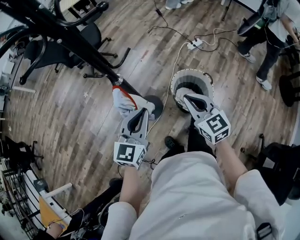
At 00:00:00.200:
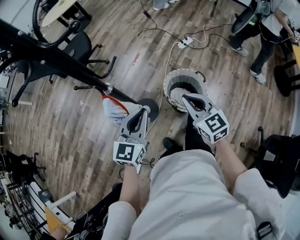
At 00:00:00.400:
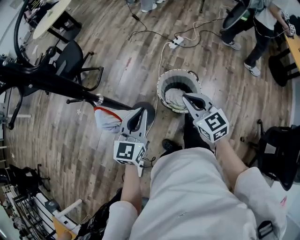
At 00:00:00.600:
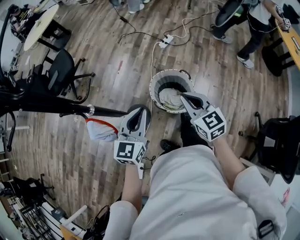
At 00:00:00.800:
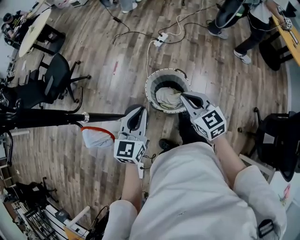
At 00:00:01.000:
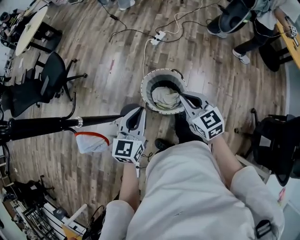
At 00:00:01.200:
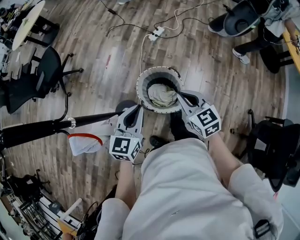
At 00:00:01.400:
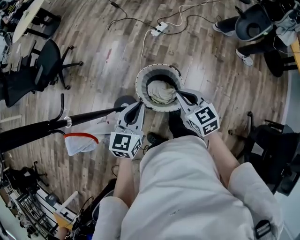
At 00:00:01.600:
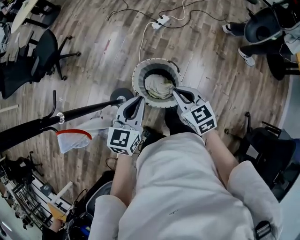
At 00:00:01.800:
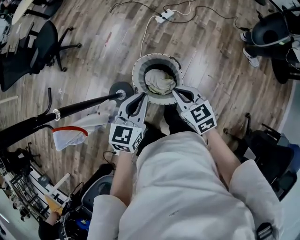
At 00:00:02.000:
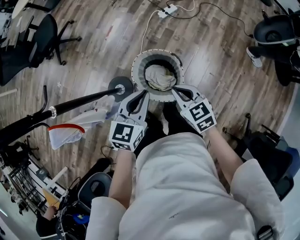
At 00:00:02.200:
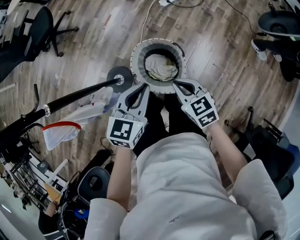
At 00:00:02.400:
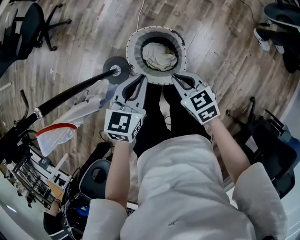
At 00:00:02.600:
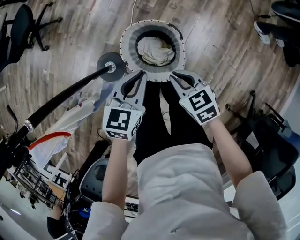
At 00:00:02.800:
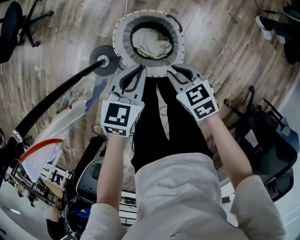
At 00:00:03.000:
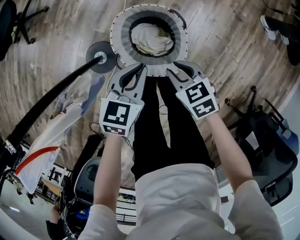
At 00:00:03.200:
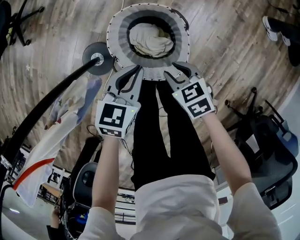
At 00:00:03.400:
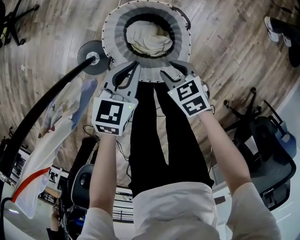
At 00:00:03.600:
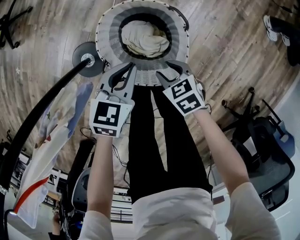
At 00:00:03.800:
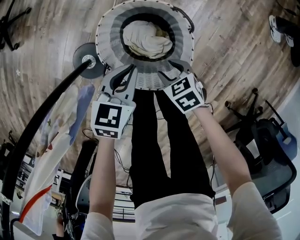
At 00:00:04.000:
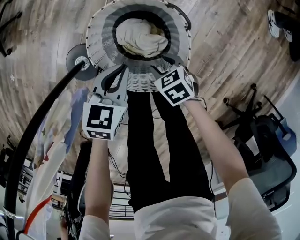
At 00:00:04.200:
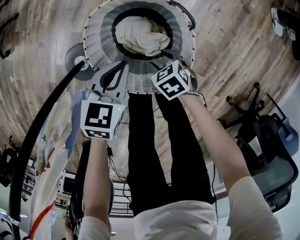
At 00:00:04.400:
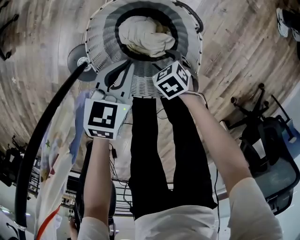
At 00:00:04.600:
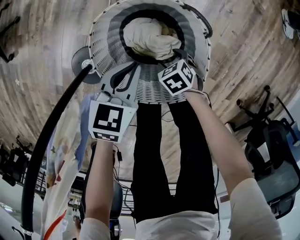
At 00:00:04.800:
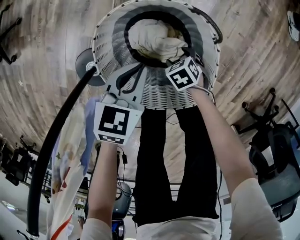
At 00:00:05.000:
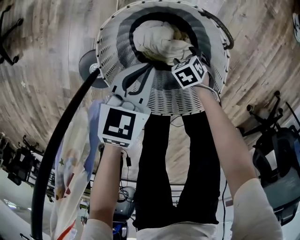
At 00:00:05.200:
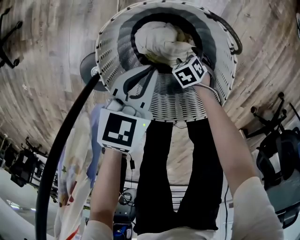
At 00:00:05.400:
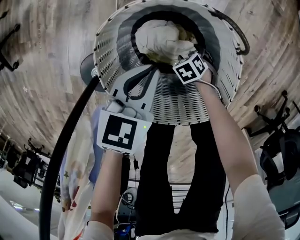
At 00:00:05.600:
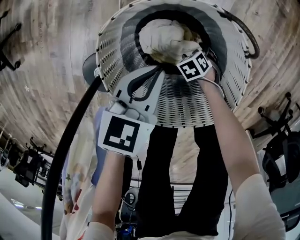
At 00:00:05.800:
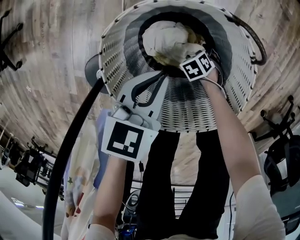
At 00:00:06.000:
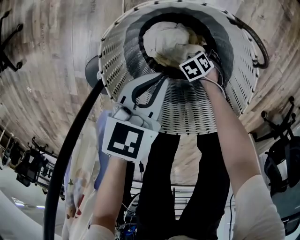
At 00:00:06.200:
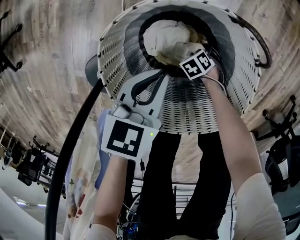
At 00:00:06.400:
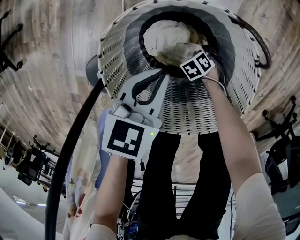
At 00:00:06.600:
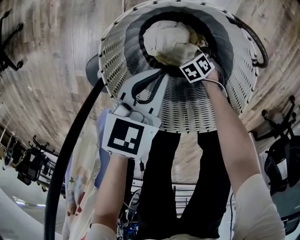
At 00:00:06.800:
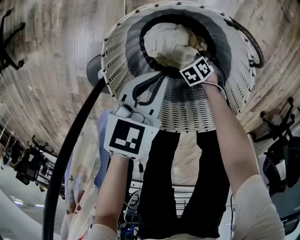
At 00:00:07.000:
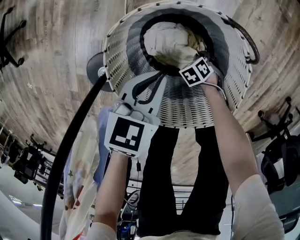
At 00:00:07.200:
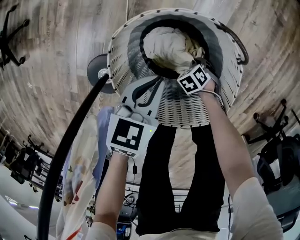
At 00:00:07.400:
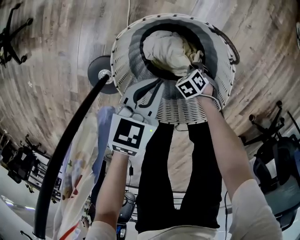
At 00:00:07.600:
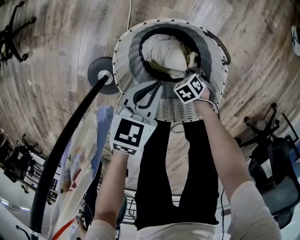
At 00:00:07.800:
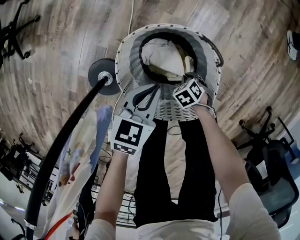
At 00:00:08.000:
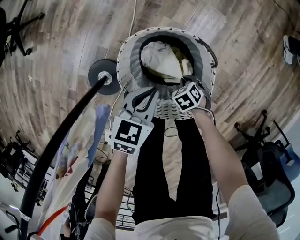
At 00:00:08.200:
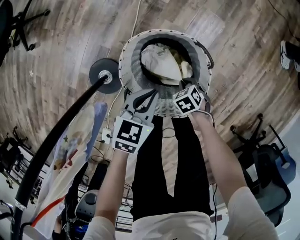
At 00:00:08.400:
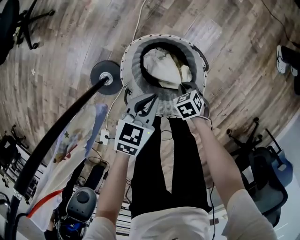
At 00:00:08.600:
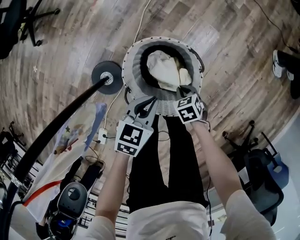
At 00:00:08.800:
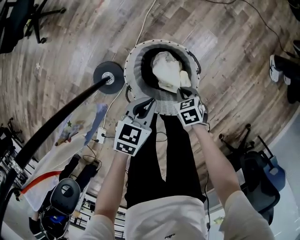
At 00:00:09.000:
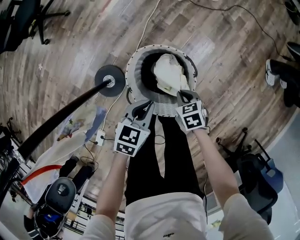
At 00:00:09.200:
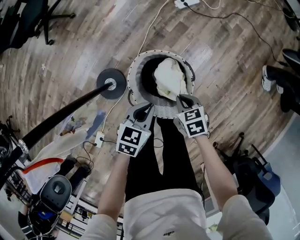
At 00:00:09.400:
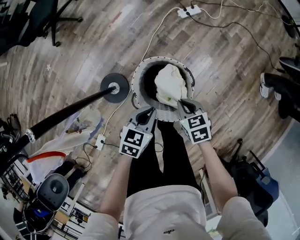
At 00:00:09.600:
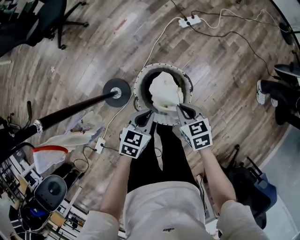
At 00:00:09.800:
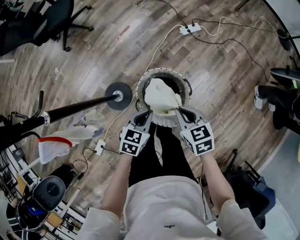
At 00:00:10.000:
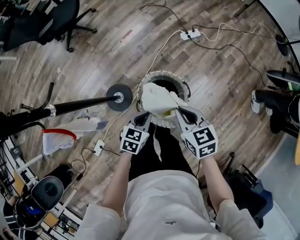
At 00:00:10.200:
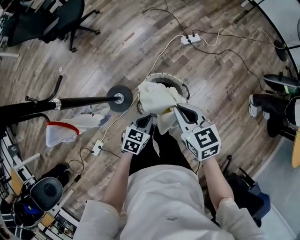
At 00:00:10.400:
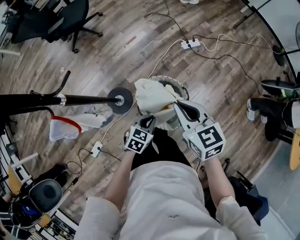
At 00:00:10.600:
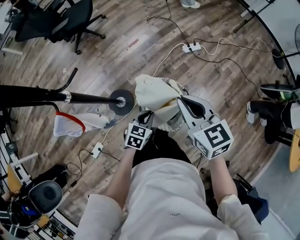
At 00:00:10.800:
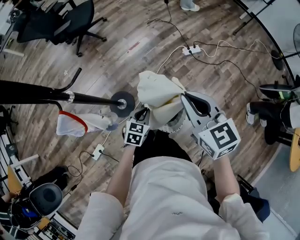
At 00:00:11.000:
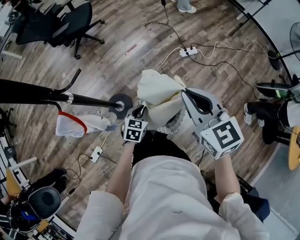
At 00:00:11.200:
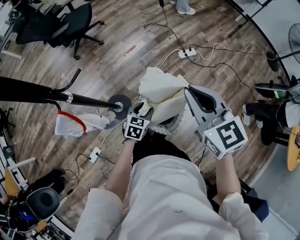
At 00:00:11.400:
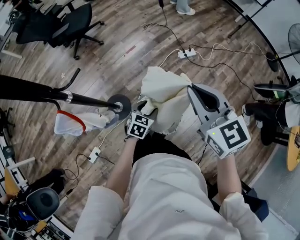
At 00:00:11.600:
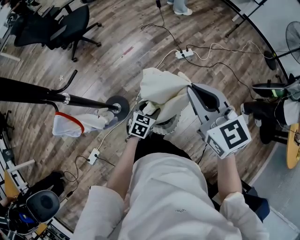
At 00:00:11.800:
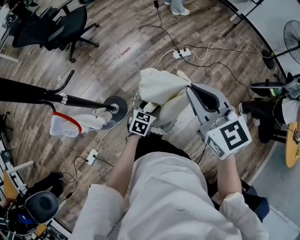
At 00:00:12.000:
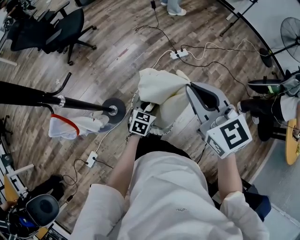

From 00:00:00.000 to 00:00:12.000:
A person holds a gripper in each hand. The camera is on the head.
From 00:00:00.000 to 00:00:01.600: The left gripper is displaced to the right and forward by about 30 cm. Meanwhile the right gripper shifts about 25 cm to the right, downward and forward.
From 00:00:01.600 to 00:00:03.000: Both grippers travel together downward, about 25 cm. The right gripper turns by about 30 degrees, and opens its fingers.
From 00:00:03.000 to 00:00:04.400: The grippers both shift downward by approximately 25 cm. The right gripper changes its angle by roughly 20 degrees, and opens its fingers.
From 00:00:04.400 to 00:00:06.000: The left gripper is displaced downward by some 10 cm; the right gripper moves downward, approximately 25 cm, and turns by roughly 20 degrees.
From 00:00:06.000 to 00:00:07.600: The right gripper heads upward, covering roughly 15 cm, and closes; the left gripper is displaced upward by roughly 5 cm.
From 00:00:07.600 to 00:00:09.000: The left gripper goes some 15 cm upward. The right gripper is displaced upward by about 30 cm, and changes its angle by about 20 degrees.
From 00:00:09.000 to 00:00:10.400: The left gripper goes about 10 cm upward and backward; the right gripper shifts about 40 cm upward, and points its fingers about 40 degrees further upward.
From 00:00:10.400 to 00:00:12.000: The left gripper travels forward by about 10 cm, and opens up; the right gripper is displaced upward by roughly 15 cm.

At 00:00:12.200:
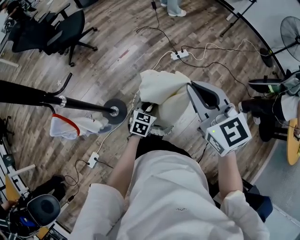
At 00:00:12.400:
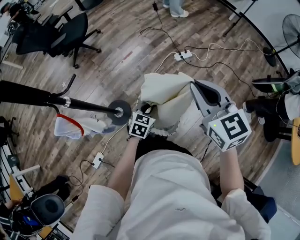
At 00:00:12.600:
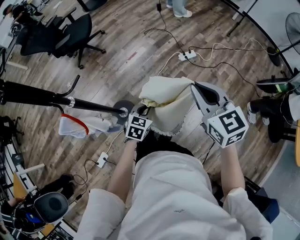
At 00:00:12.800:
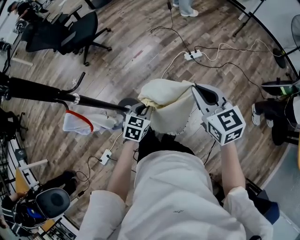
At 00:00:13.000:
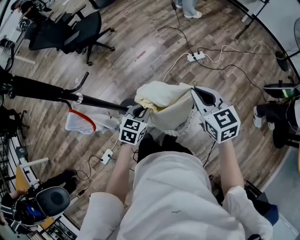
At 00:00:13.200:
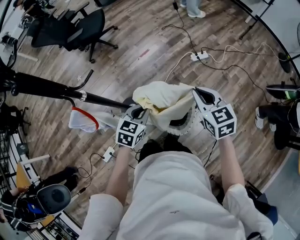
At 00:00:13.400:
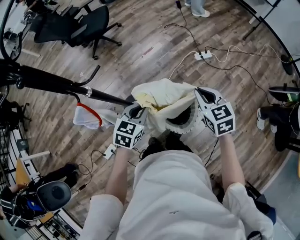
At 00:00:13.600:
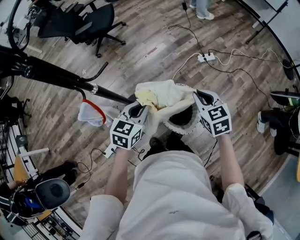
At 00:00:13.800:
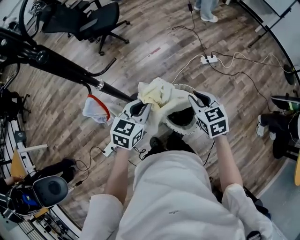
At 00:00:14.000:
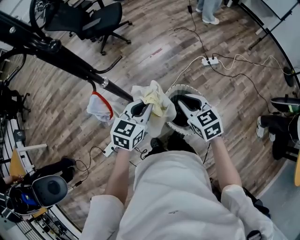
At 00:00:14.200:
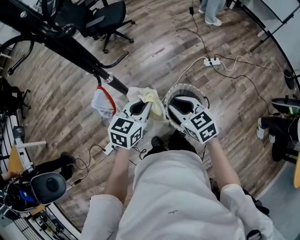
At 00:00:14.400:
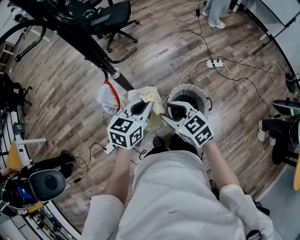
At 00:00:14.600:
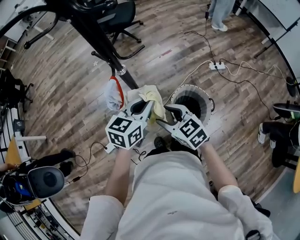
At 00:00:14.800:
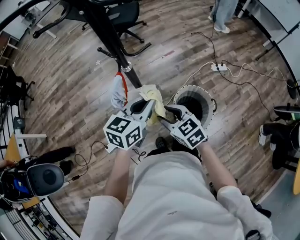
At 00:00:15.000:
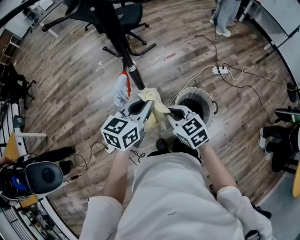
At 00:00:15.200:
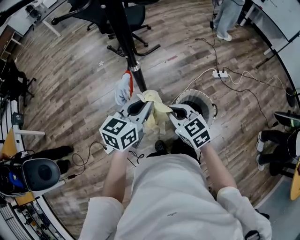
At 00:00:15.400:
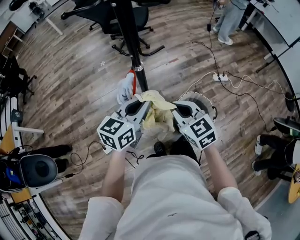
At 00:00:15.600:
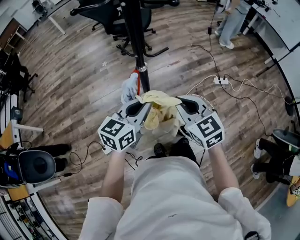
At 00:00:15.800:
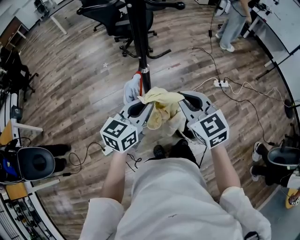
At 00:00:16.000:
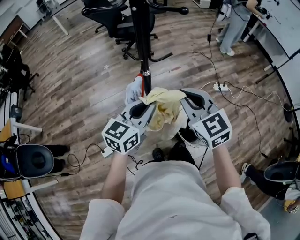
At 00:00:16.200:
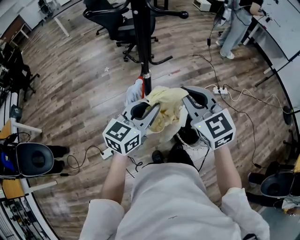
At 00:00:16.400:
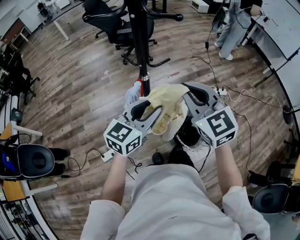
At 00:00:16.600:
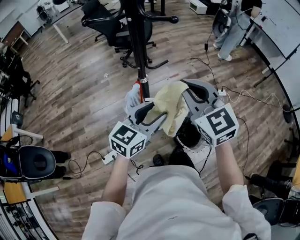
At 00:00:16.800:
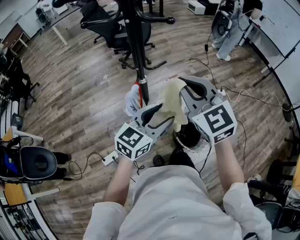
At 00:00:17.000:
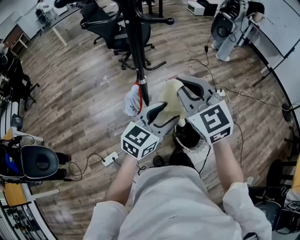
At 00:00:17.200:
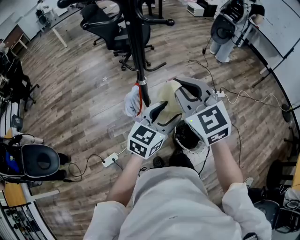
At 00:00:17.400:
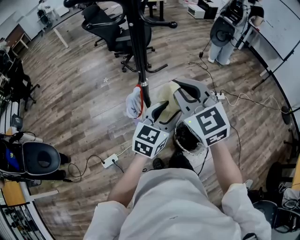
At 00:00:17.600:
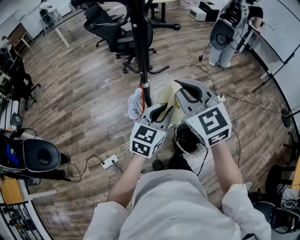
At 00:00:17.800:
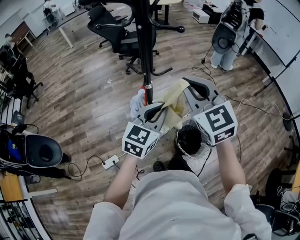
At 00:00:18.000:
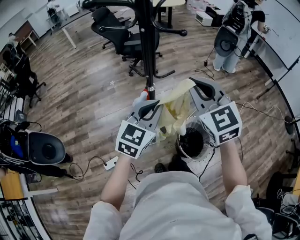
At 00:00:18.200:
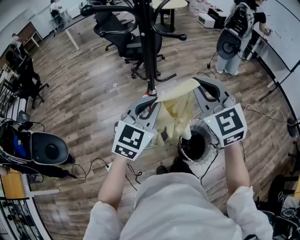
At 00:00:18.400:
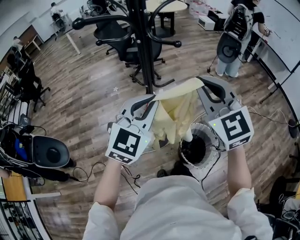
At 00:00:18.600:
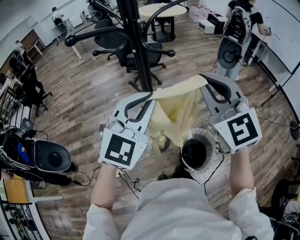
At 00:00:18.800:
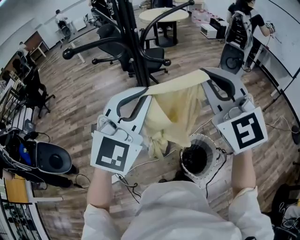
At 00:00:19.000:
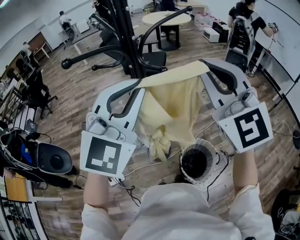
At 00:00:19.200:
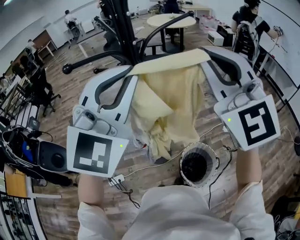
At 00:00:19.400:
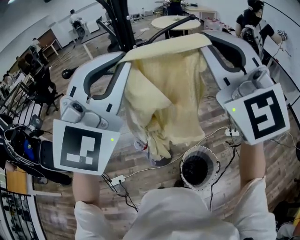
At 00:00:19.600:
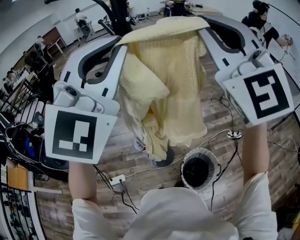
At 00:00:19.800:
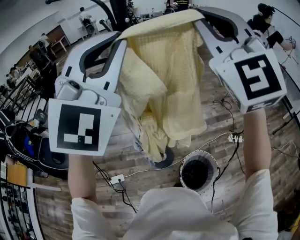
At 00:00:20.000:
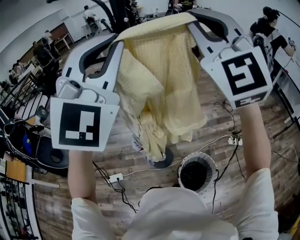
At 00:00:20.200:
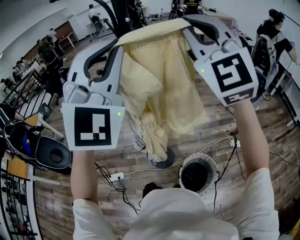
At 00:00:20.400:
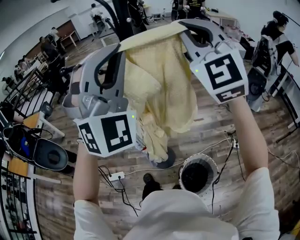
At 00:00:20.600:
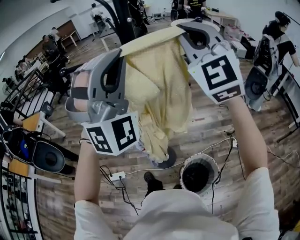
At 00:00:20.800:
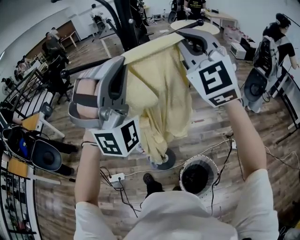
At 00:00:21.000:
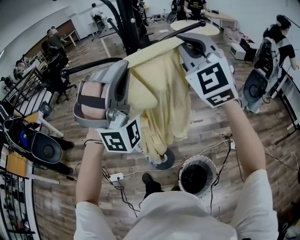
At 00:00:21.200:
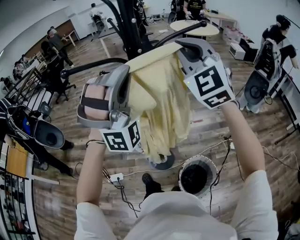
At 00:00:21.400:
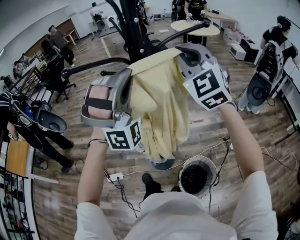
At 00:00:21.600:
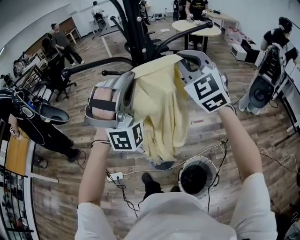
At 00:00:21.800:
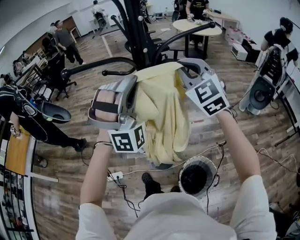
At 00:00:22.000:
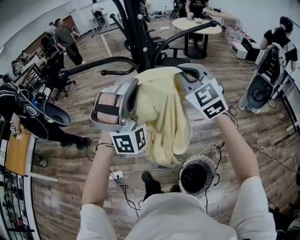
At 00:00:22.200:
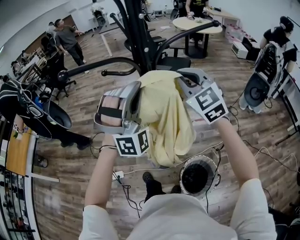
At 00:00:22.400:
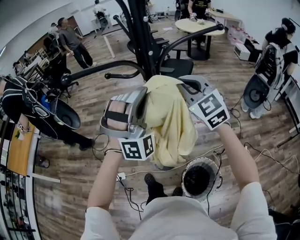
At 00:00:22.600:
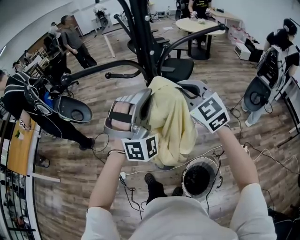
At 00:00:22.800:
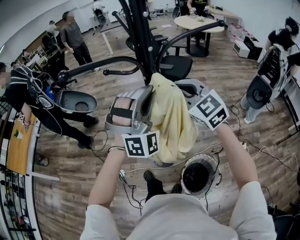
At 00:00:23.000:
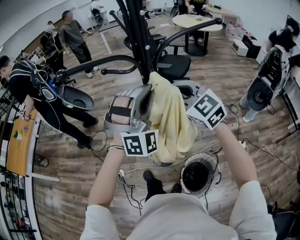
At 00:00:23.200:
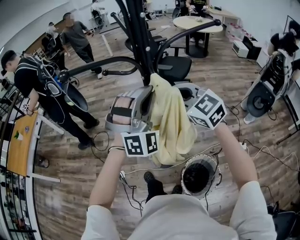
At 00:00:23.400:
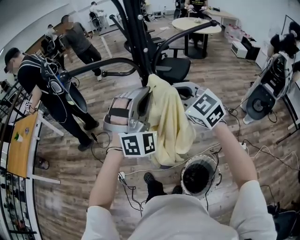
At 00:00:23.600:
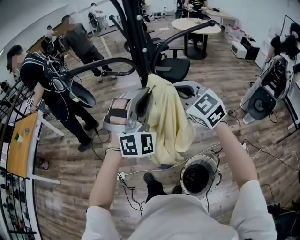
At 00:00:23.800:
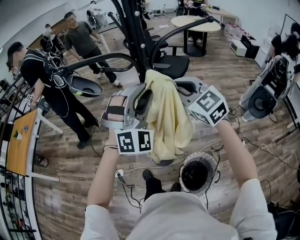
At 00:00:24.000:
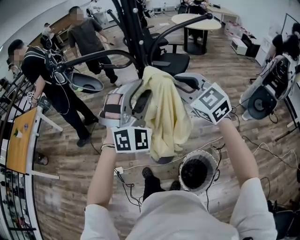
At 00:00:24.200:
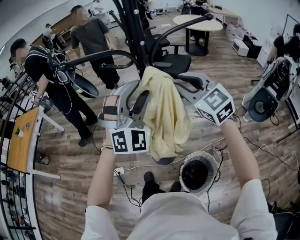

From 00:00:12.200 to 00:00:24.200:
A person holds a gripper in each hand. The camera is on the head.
From 00:00:12.200 to 00:00:13.800: The left gripper is displaced to the left and upward by approximately 25 cm. Meanwhile the right gripper shifts roughly 20 cm downward and to the left, and turns by some 20 degrees.
From 00:00:13.800 to 00:00:15.200: The left gripper shifts roughly 15 cm to the left, upward and backward. Meanwhile the right gripper travels to the left by about 25 cm, rotates roughly 20 degrees, and opens and closes again.
From 00:00:15.200 to 00:00:16.600: The left gripper opens its fingers; the right gripper moves upward, about 20 cm, and changes its angle by some 30 degrees.
From 00:00:16.600 to 00:00:18.200: The right gripper is displaced upward by some 5 cm, while the left gripper travels upward by approximately 10 cm, rotates about 30 degrees, and closes up.
From 00:00:18.200 to 00:00:19.800: Both grippers move upward, about 30 cm. The right gripper turns by approximately 30 degrees. The left gripper rotates approximately 50 degrees.
From 00:00:19.800 to 00:00:21.200: Both grippers move downward and forward, some 15 cm. The left gripper twists approximately 50 degrees clockwise, seen from behind.
From 00:00:21.200 to 00:00:22.600: The left gripper is displaced downward by roughly 10 cm; the right gripper is displaced downward by some 15 cm, and turns by approximately 30 degrees.
From 00:00:22.600 to 00:00:24.200: The left gripper opens.
